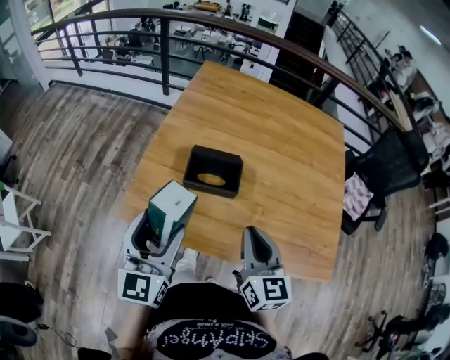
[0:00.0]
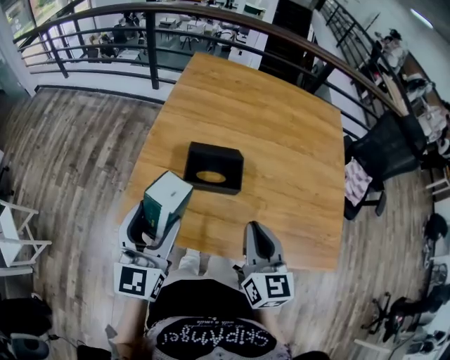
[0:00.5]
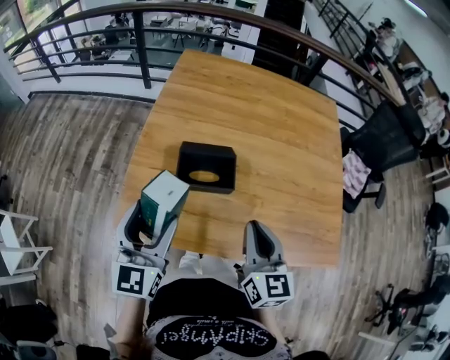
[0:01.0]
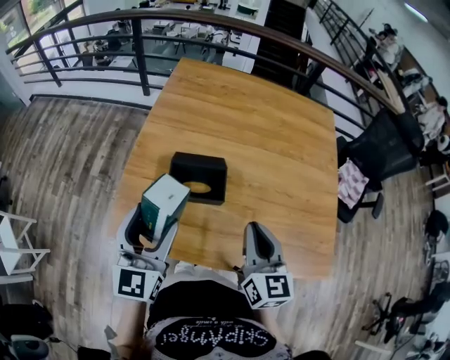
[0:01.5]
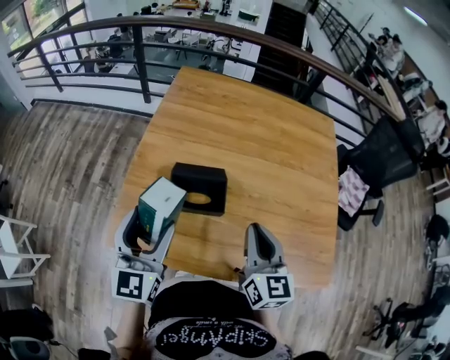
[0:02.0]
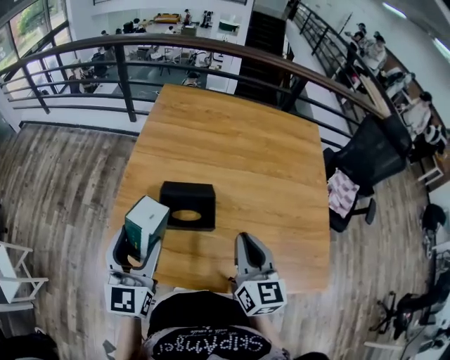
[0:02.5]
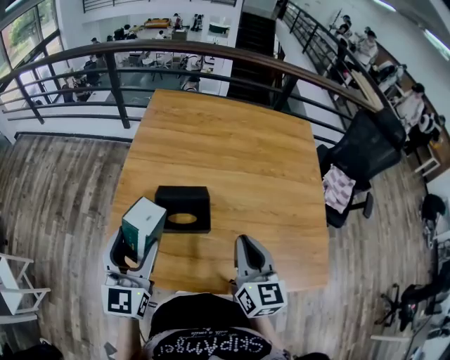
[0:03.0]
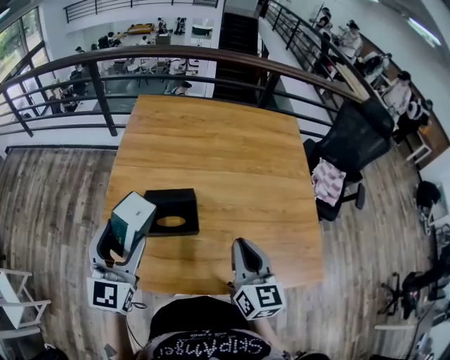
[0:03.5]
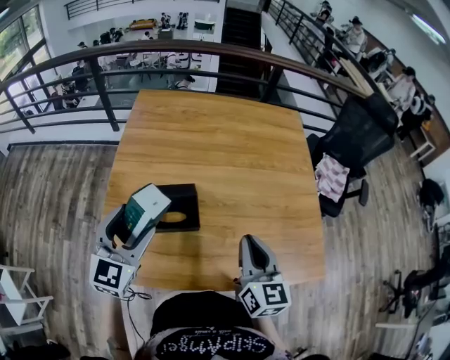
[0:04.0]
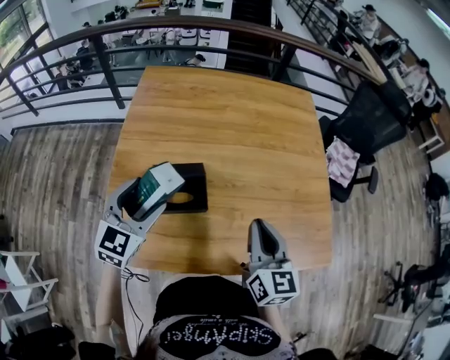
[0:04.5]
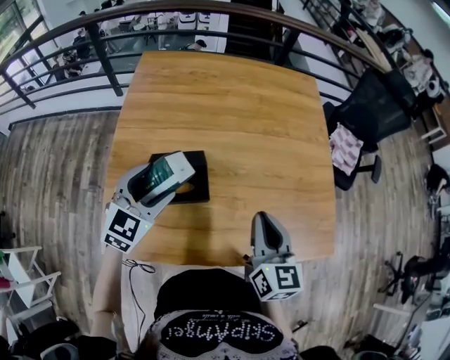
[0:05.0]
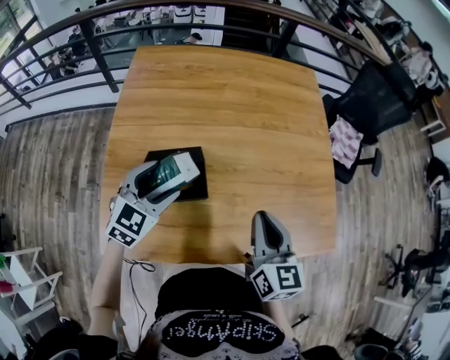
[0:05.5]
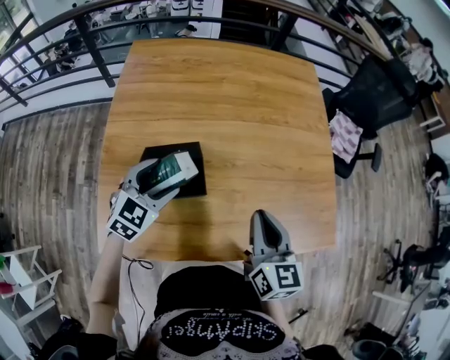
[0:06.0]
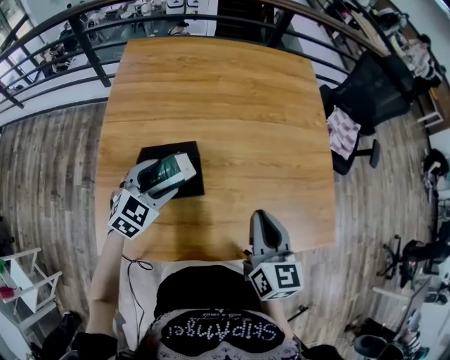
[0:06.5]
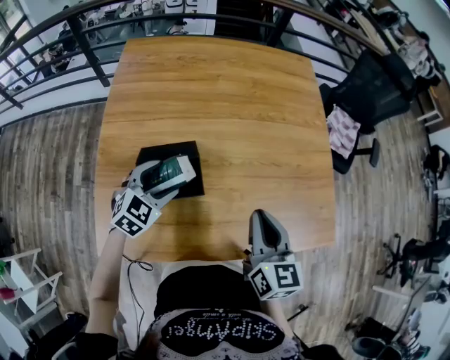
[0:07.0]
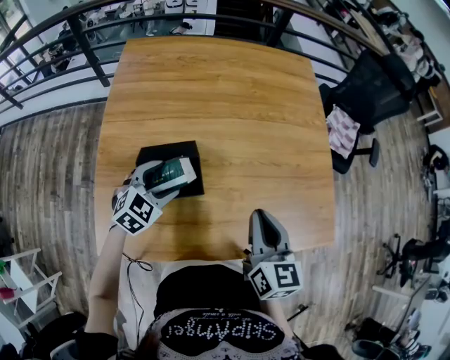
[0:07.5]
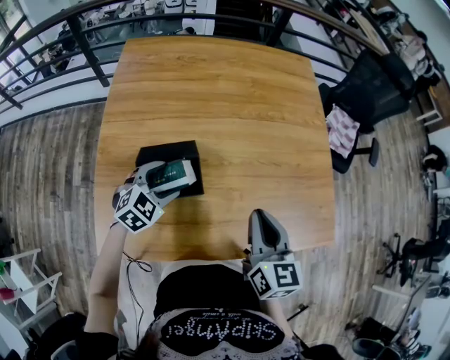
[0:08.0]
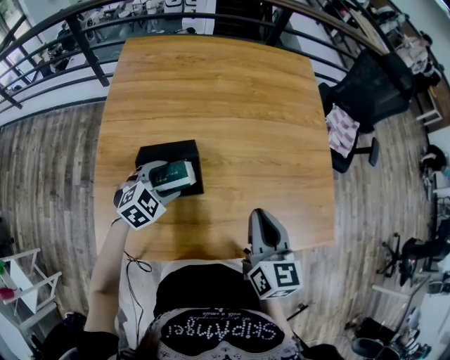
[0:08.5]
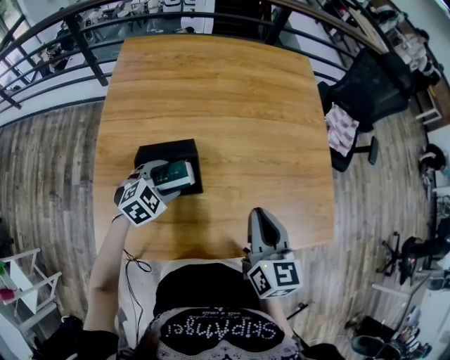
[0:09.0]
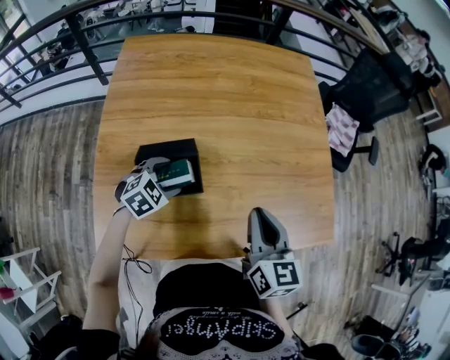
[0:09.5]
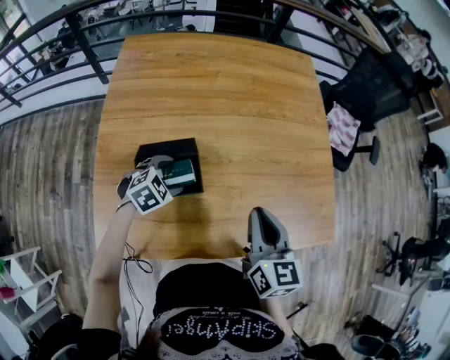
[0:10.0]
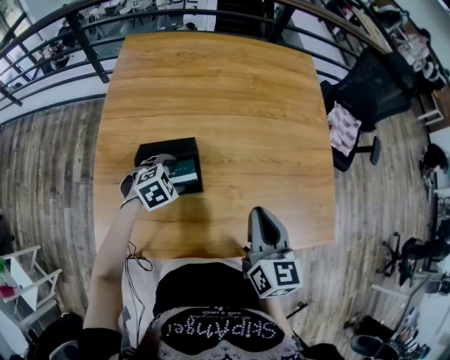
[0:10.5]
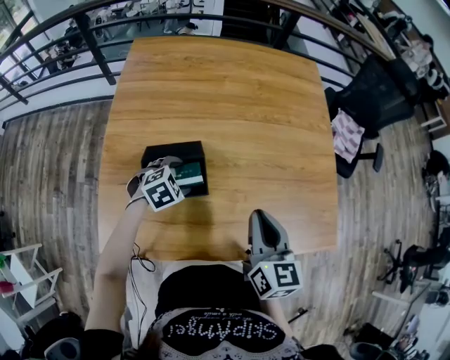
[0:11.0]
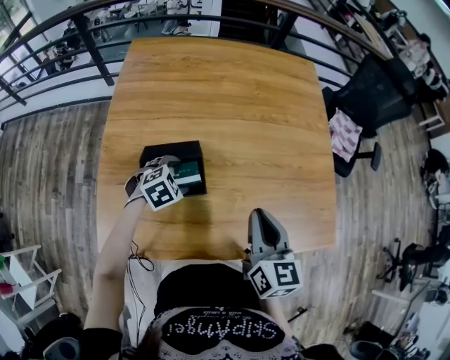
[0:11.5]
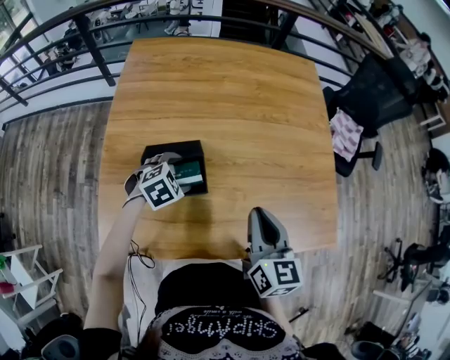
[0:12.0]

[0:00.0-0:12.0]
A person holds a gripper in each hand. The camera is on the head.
0.0 to 2.0 s: Both grippers travel together forward, some 10 cm.
2.0 to 4.0 s: The left gripper is displaced forward by about 5 cm, and turns by approximately 20 degrees, while the right gripper travels to the right by roughly 5 cm.
4.0 to 6.0 s: The left gripper travels downward and forward by about 15 cm, and changes its angle by some 30 degrees.
6.0 to 8.0 s: The left gripper goes approximately 5 cm downward.
8.0 to 10.0 s: The left gripper shifts roughly 5 cm downward.
10.0 to 12.0 s: The grippers stay close to where they were, moving slightly.

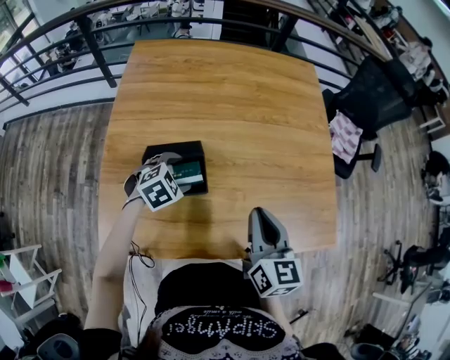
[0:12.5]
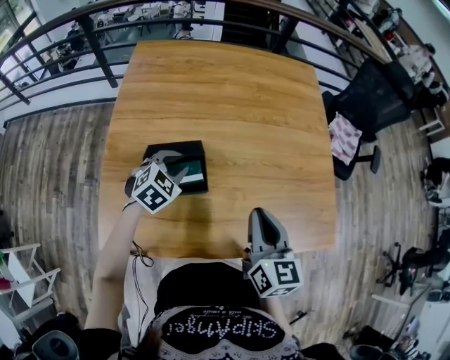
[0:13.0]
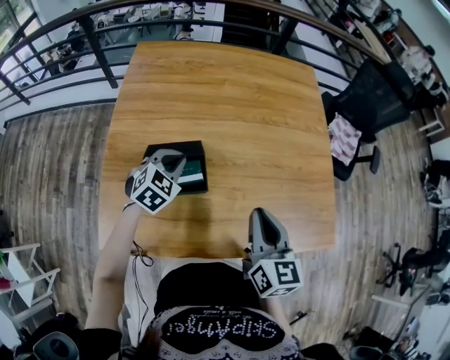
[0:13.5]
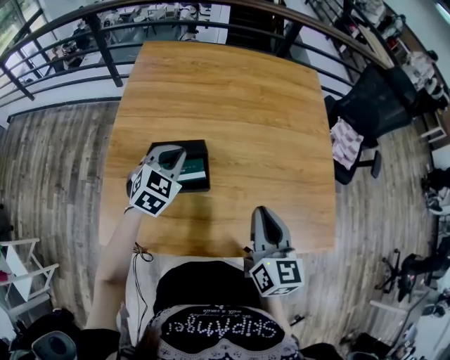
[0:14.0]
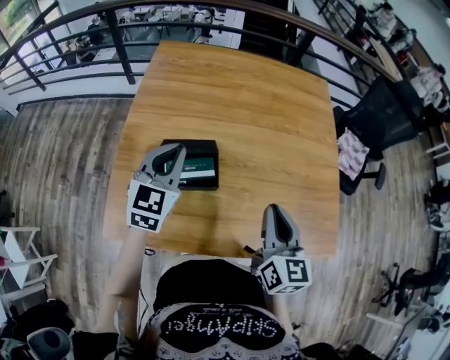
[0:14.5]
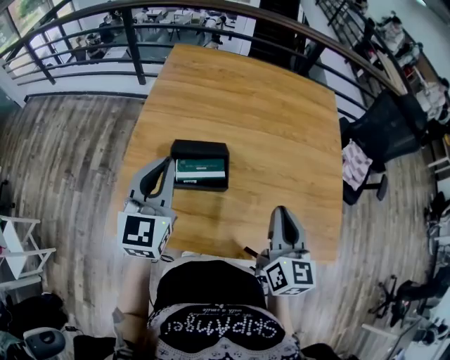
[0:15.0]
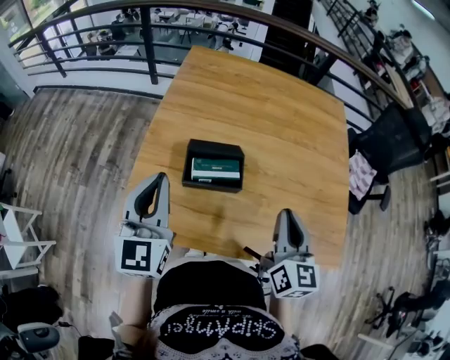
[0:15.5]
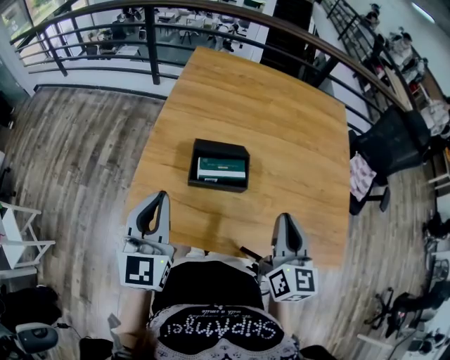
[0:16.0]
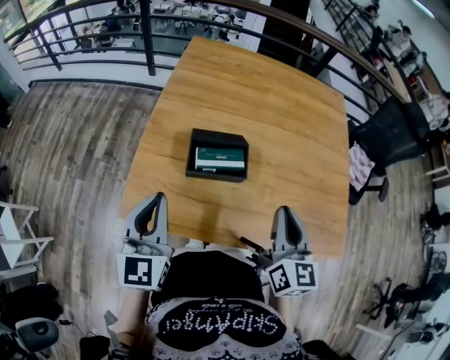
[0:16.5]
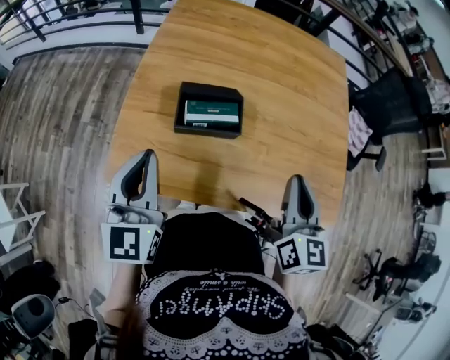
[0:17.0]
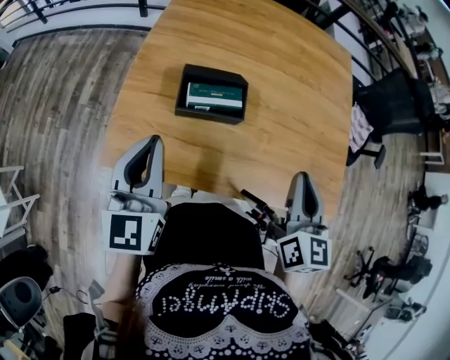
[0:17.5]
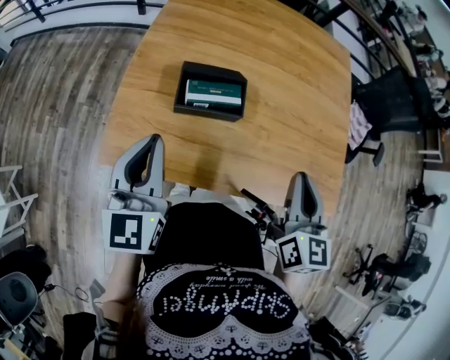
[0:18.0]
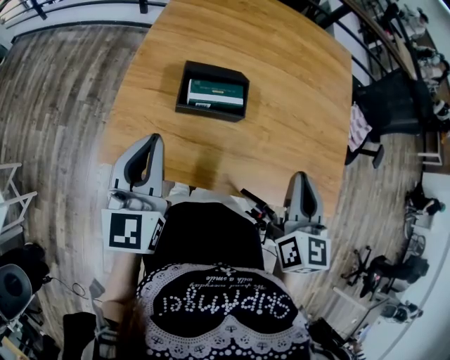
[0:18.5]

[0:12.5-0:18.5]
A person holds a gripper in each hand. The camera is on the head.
12.5 to 14.5 s: The left gripper travels upward by about 20 cm, tips its fingers upward by roughly 40 degrees, and closes.
14.5 to 16.5 s: The right gripper heads to the left, covering about 5 cm. The left gripper moves backward and to the left, roughly 20 cm, and changes its angle by roughly 20 degrees.
16.5 to 18.5 s: The grippers stay close to where they were, moving slightly.

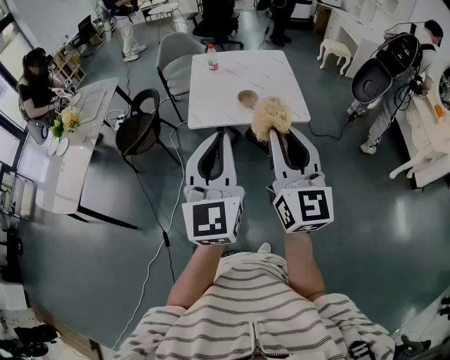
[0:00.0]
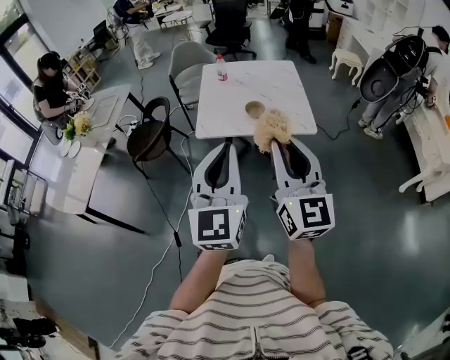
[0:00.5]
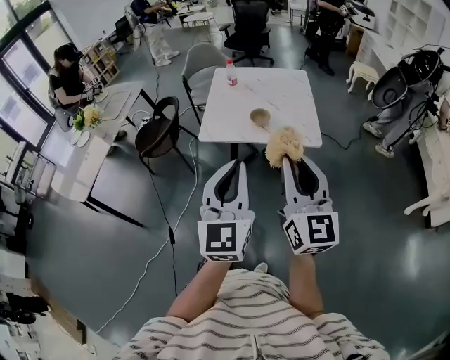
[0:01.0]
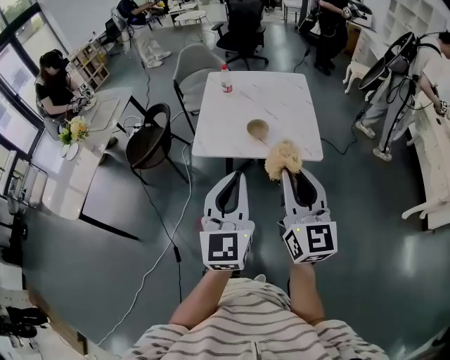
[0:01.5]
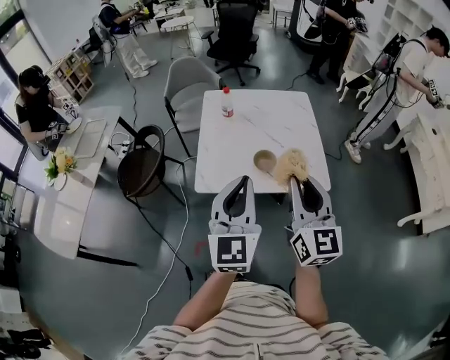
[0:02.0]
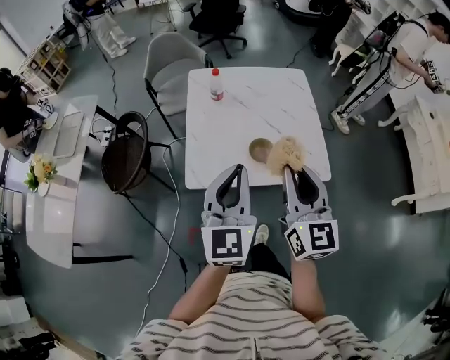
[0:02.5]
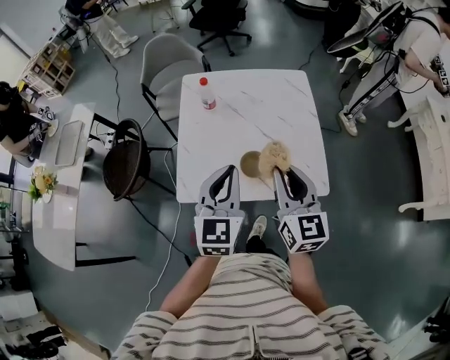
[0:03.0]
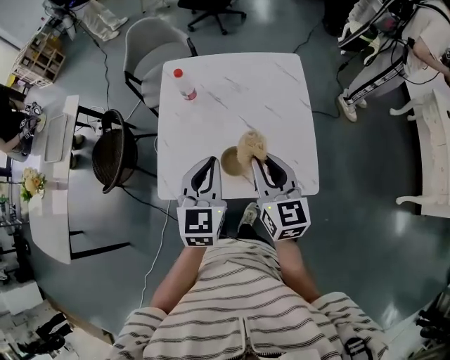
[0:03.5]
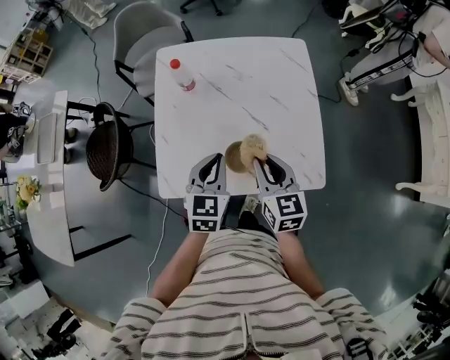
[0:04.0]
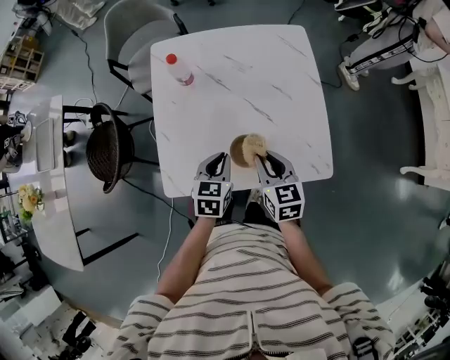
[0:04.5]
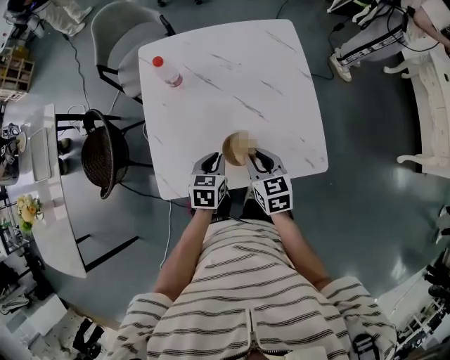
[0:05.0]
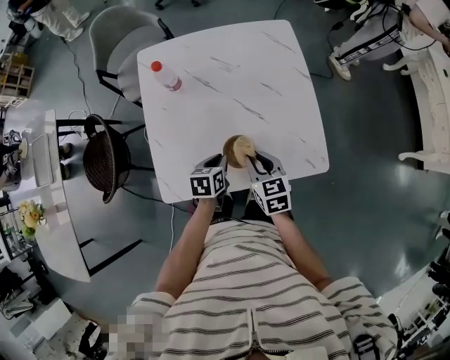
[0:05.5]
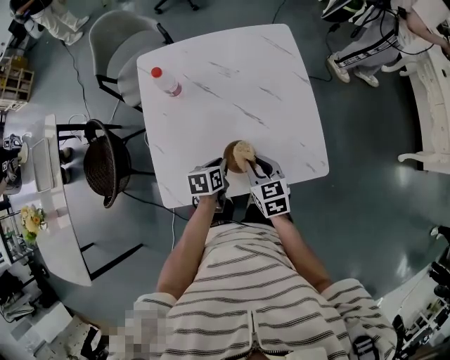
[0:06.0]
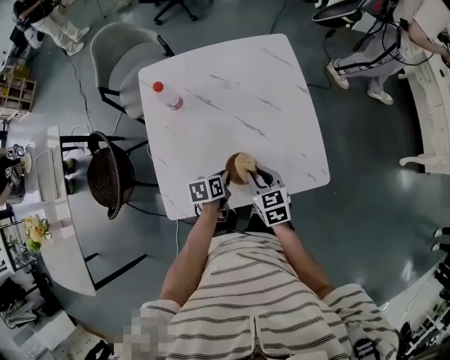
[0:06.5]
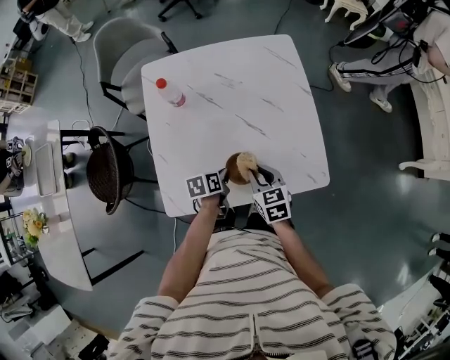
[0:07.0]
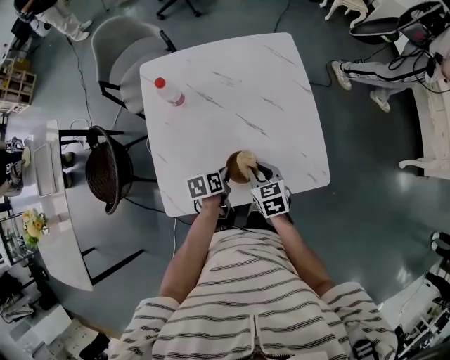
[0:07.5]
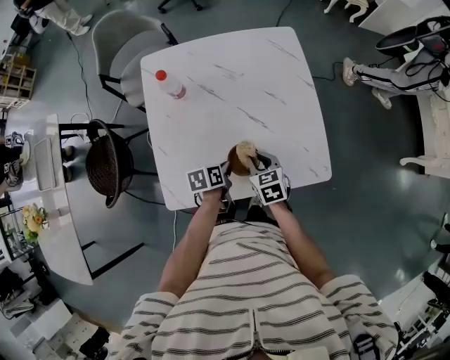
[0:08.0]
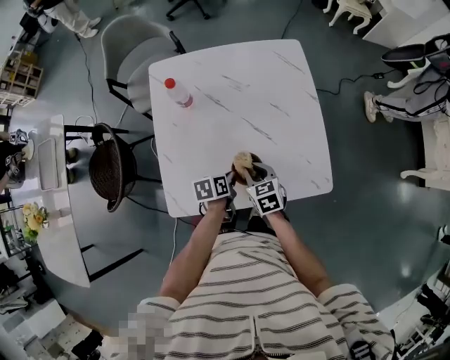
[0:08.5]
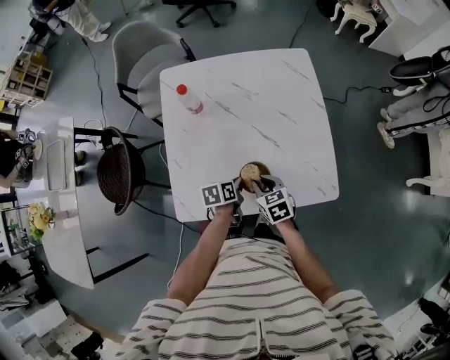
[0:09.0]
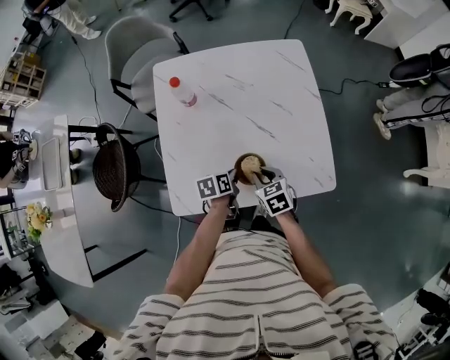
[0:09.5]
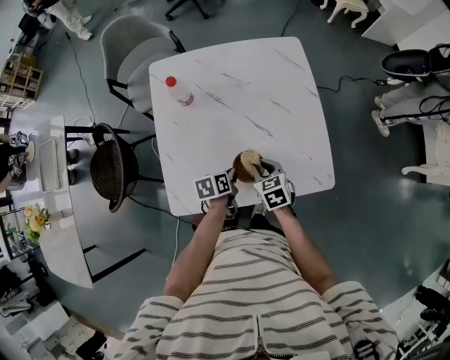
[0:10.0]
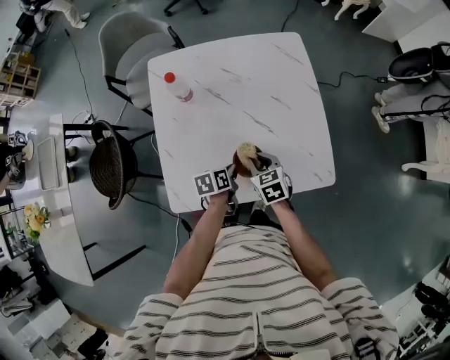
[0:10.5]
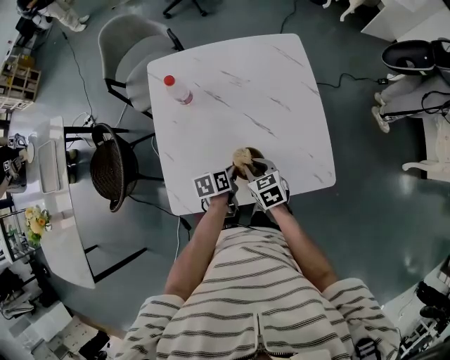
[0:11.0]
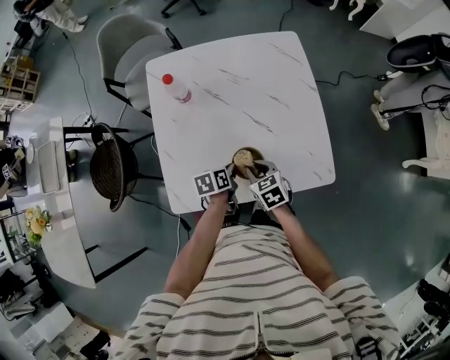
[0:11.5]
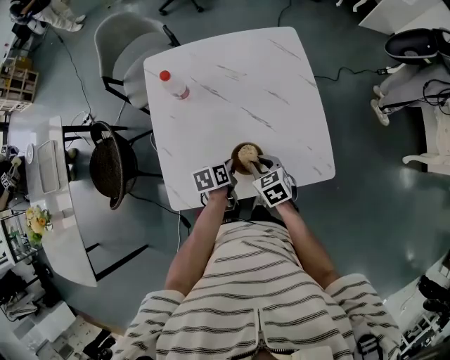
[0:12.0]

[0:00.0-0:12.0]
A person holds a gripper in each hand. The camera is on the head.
0.0 to 2.0 s: The two grippers go some 25 cm forward.
2.0 to 4.0 s: Both grippers travel together forward and downward, roughly 35 cm. The left gripper tilts its fingers approximately 30 degrees downward; the right gripper swivels some 30 degrees.
4.0 to 6.0 s: The right gripper heads downward, covering approximately 10 cm; the left gripper moves downward, approximately 20 cm, and swivels about 40 degrees.
6.0 to 8.0 s: The right gripper heads downward, covering some 5 cm.
8.0 to 12.0 s: There are only small adjustments of the grippers.
